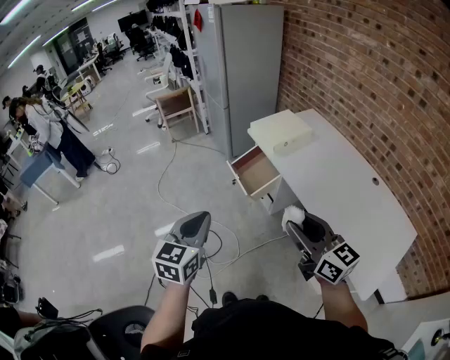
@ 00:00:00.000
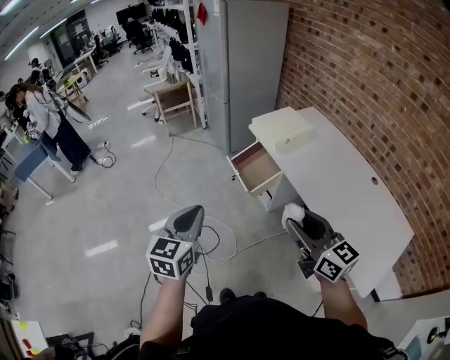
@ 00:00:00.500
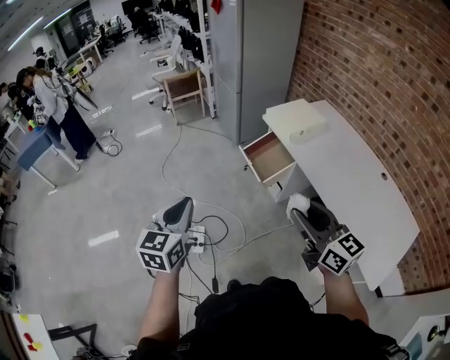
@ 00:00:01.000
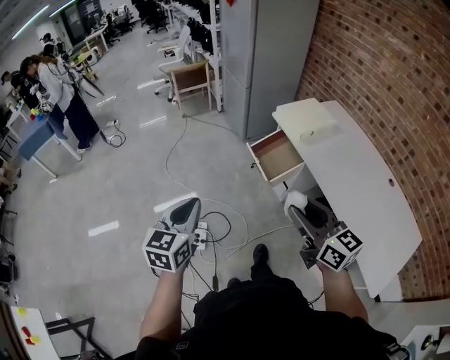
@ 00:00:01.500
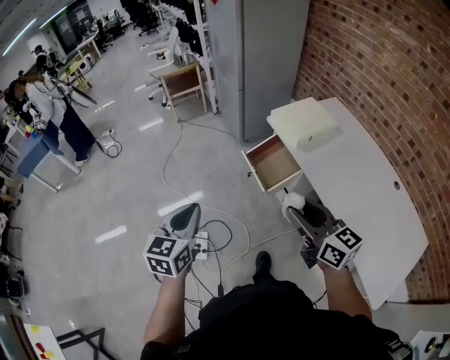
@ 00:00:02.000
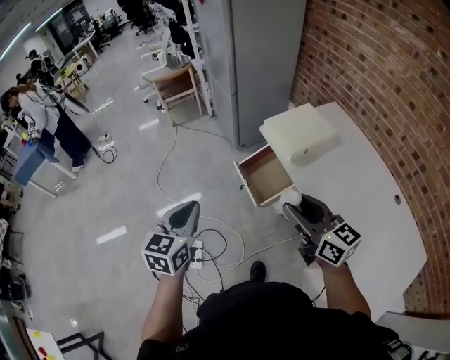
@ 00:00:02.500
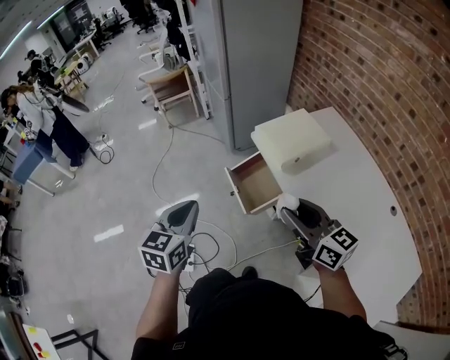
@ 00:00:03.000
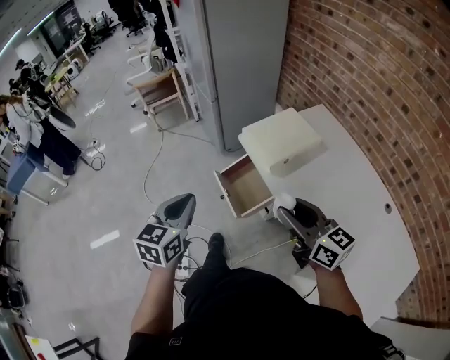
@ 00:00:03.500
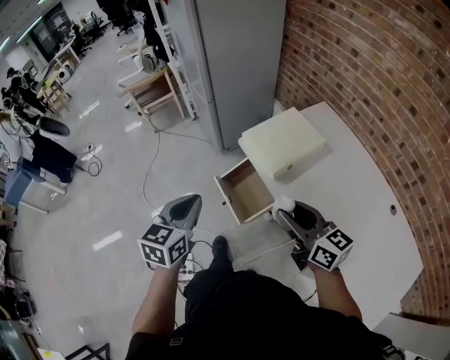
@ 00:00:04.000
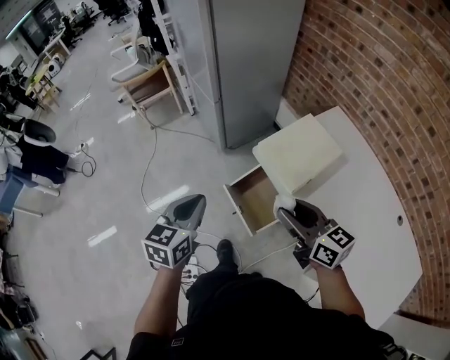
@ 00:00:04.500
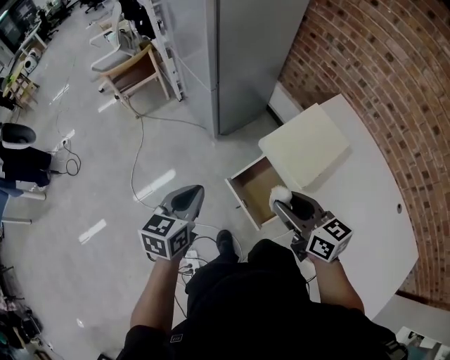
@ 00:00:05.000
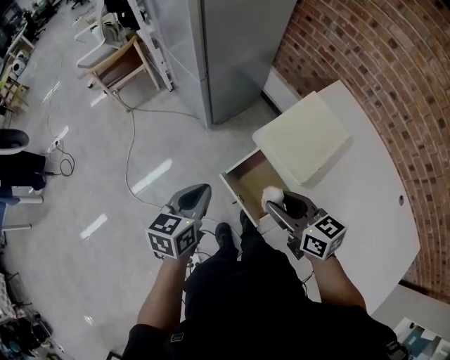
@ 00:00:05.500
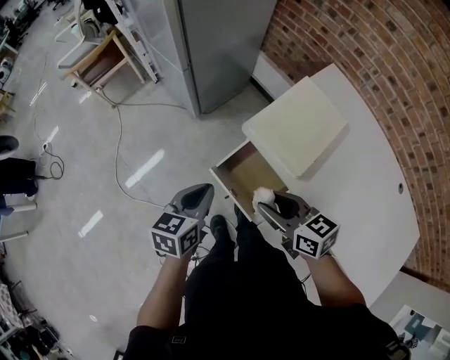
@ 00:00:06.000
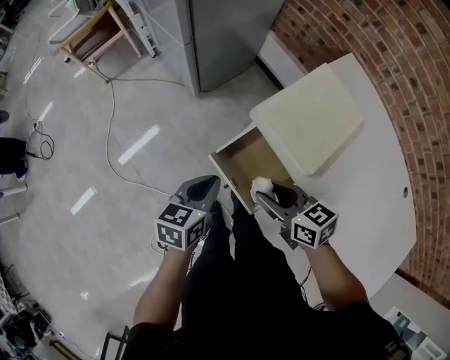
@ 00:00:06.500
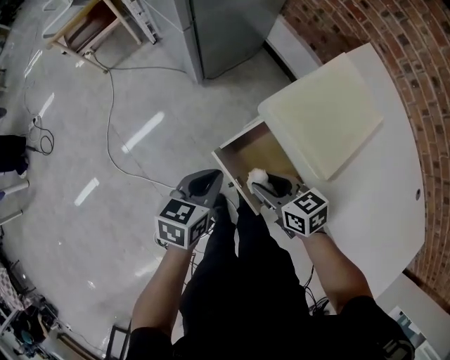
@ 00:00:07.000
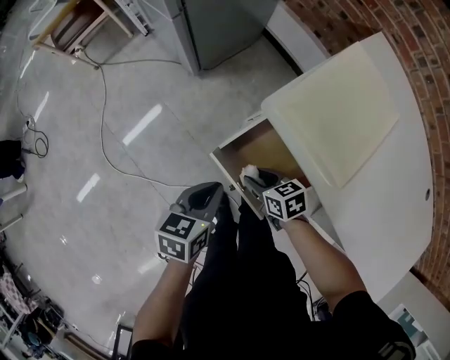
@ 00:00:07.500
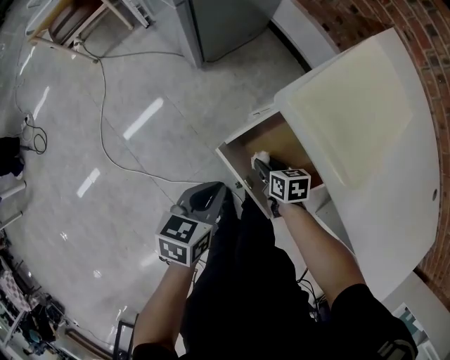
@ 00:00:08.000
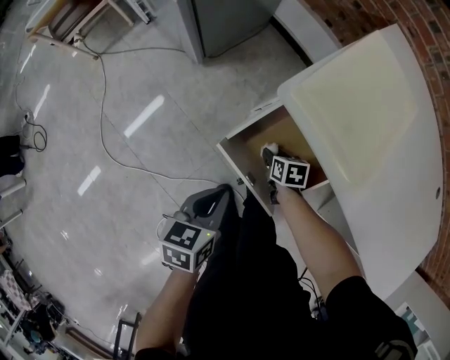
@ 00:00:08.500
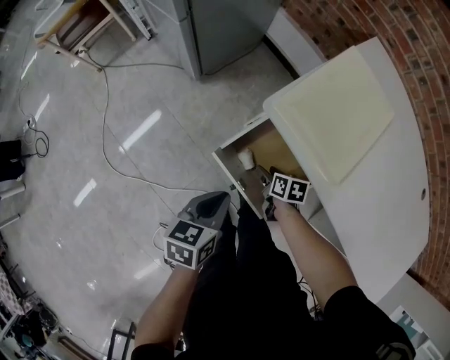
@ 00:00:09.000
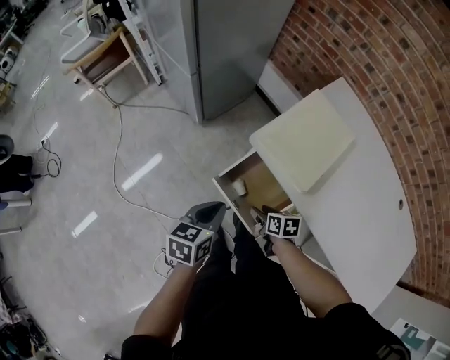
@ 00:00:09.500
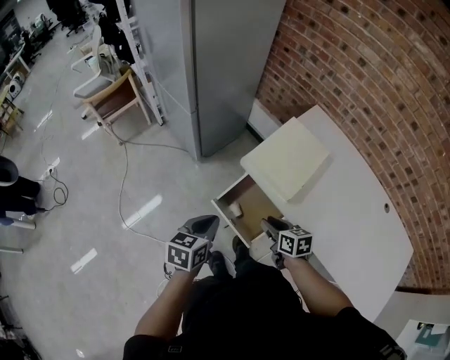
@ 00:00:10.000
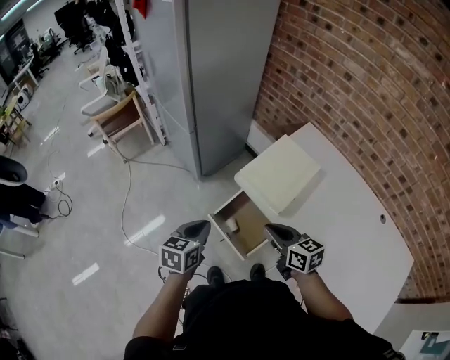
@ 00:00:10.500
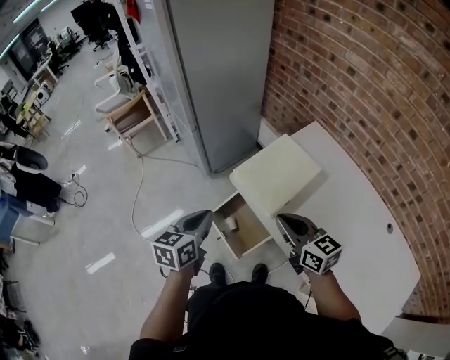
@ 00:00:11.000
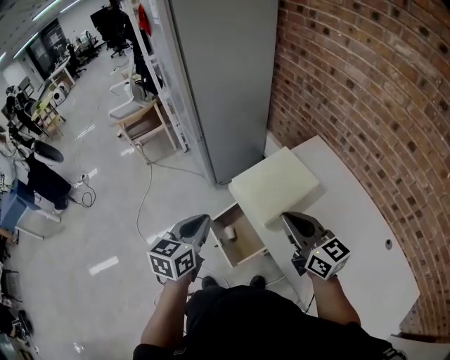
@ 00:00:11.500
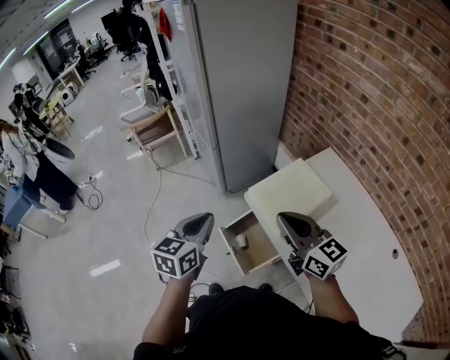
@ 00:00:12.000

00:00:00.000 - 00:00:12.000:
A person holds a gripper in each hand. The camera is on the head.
00:00:00.000 - 00:00:02.000: Both grippers travel together forward and to the left, roughly 15 cm.
00:00:02.000 - 00:00:04.000: Both grippers travel together forward and to the right, some 25 cm.
00:00:04.000 - 00:00:06.000: The left gripper is displaced forward and downward by about 25 cm, and turns by roughly 20 degrees. Meanwhile the right gripper shifts roughly 25 cm forward, downward and to the left, and turns by roughly 20 degrees.
00:00:06.000 - 00:00:08.000: The left gripper travels downward by approximately 20 cm, while the right gripper shifts roughly 35 cm downward, and turns by about 30 degrees.
00:00:08.000 - 00:00:10.000: The two grippers go roughly 25 cm upward.
00:00:10.000 - 00:00:12.000: The right gripper travels upward by about 30 cm, tips its fingers upward by about 40 degrees, and closes its fingers. The left gripper travels upward by some 15 cm, and changes its angle by roughly 20 degrees.

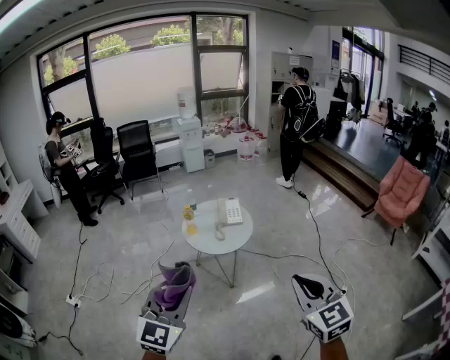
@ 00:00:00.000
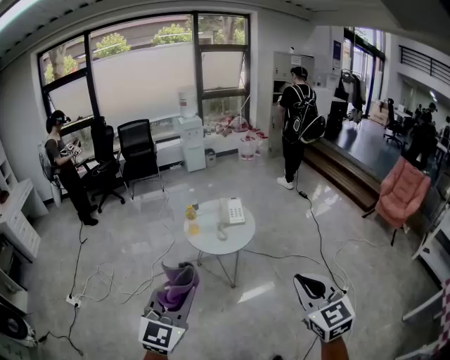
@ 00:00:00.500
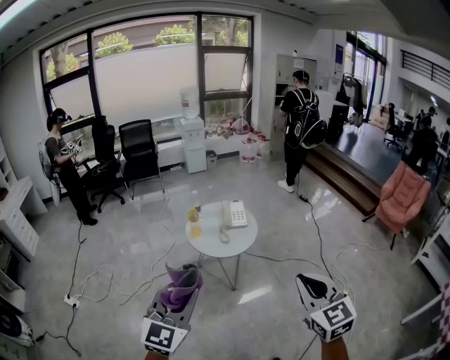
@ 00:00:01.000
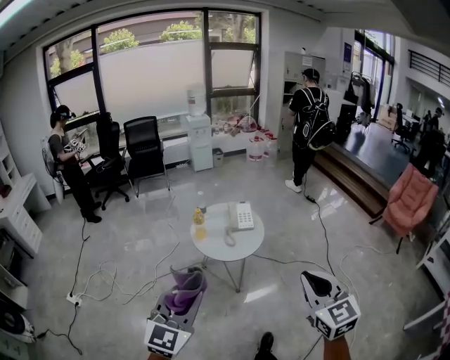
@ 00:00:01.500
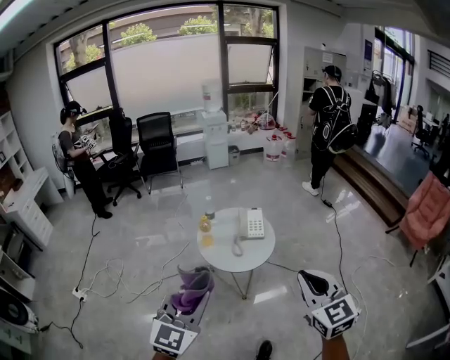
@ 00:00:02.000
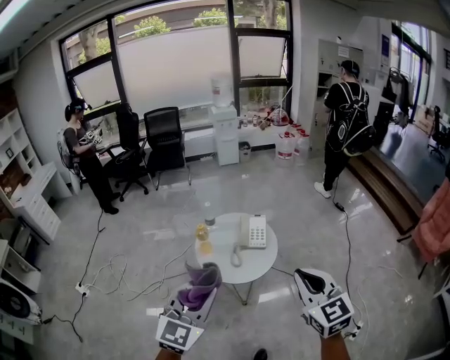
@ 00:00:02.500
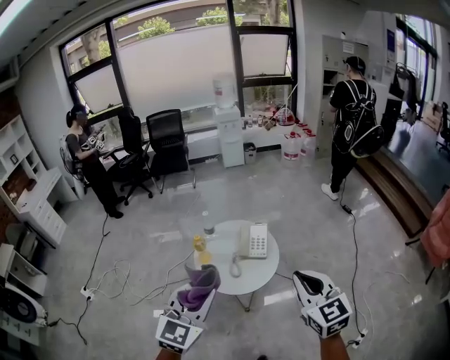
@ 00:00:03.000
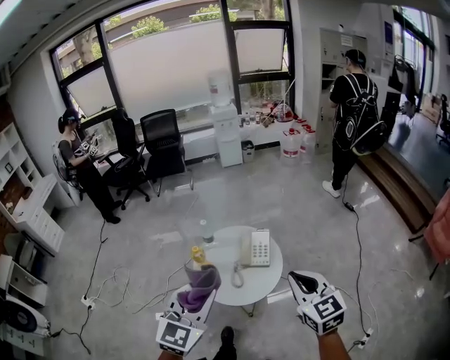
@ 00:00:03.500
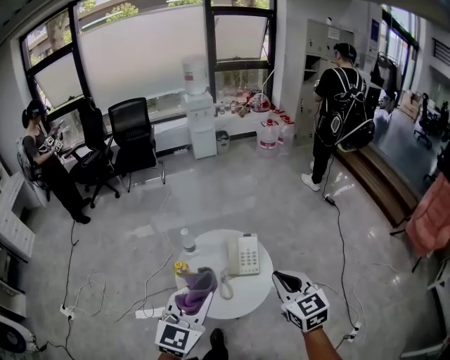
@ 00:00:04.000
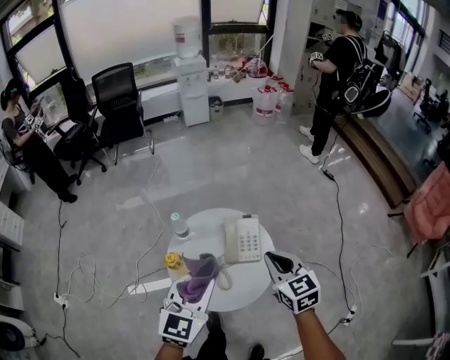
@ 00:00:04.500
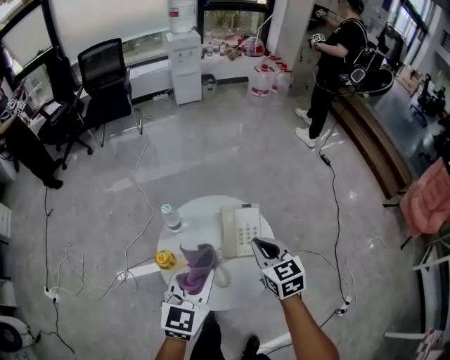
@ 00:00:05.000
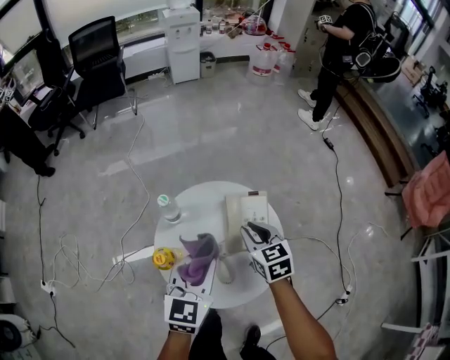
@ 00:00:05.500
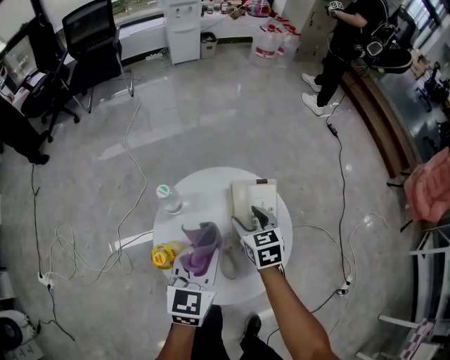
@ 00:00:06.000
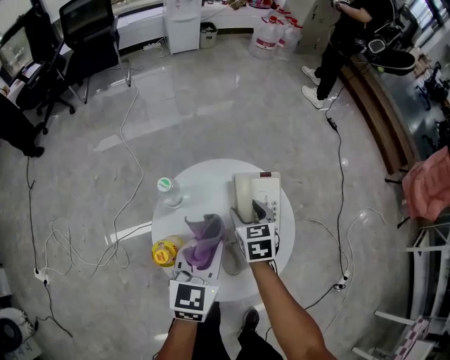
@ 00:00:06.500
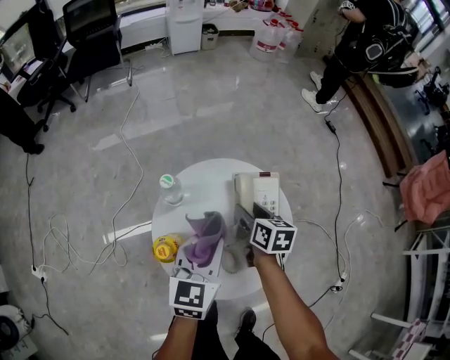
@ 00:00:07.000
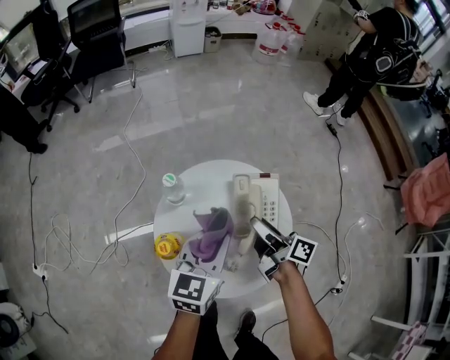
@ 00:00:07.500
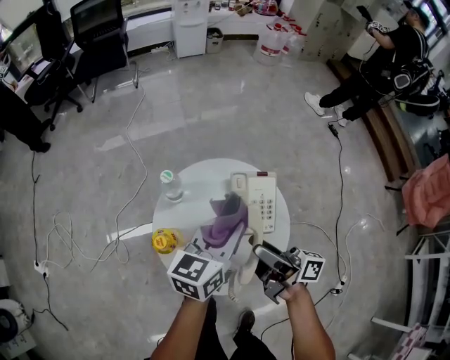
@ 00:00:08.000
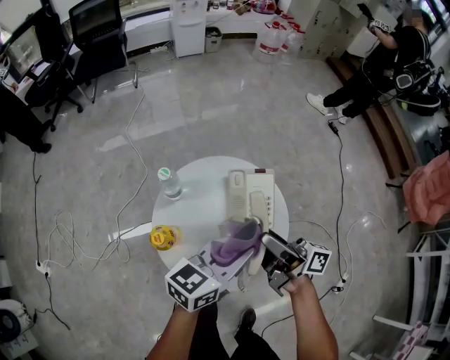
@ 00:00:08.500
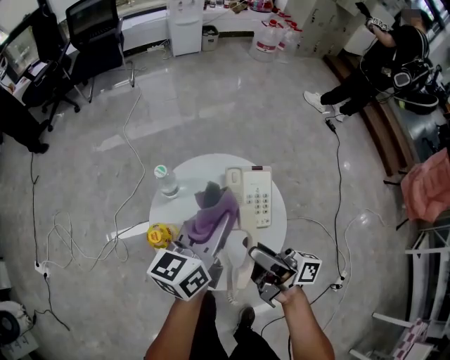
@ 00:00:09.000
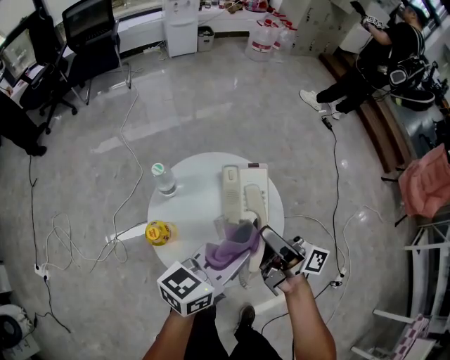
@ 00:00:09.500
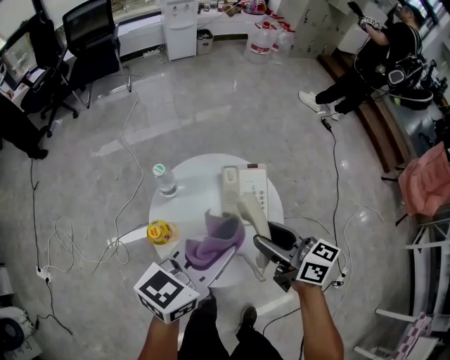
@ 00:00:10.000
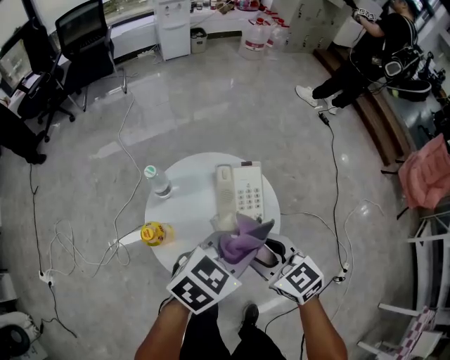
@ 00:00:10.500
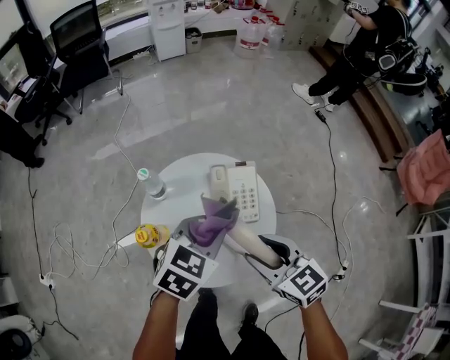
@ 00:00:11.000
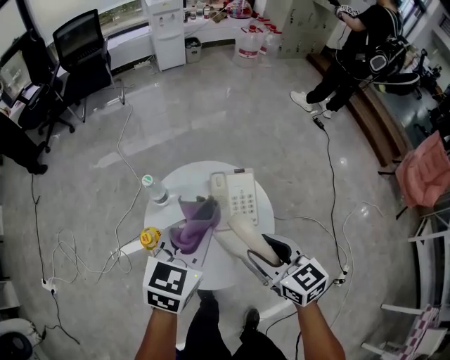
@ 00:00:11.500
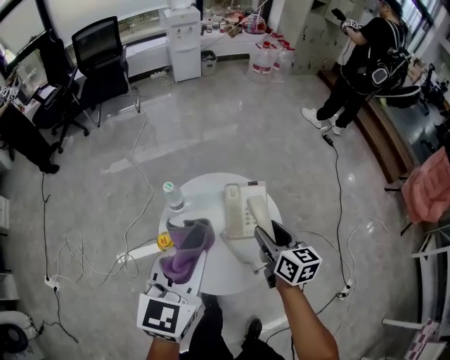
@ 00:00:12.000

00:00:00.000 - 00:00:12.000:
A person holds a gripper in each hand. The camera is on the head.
00:00:00.000 - 00:00:02.000: The two grippers go about 20 cm forward.
00:00:02.000 - 00:00:04.000: The grippers both shift forward by about 40 cm.
00:00:04.000 - 00:00:06.000: The two grippers go some 40 cm downward and forward. The right gripper rotates approximately 20 degrees, and opens up. The left gripper rotates about 20 degrees.
00:00:06.000 - 00:00:08.000: The left gripper travels to the right by roughly 5 cm, and changes its angle by about 20 degrees, while the right gripper goes approximately 15 cm upward and backward, and tilts its fingers approximately 50 degrees upward.
00:00:08.000 - 00:00:10.000: The left gripper swings forward and backward, roughly 10 cm each way, with 2 reversals. Meanwhile the right gripper changes its angle by some 40 degrees.
00:00:10.000 - 00:00:12.000: The right gripper changes place by roughly 5 cm, and rotates about 30 degrees, while the left gripper is displaced to the left and upward by about 10 cm, and changes its angle by about 30 degrees.

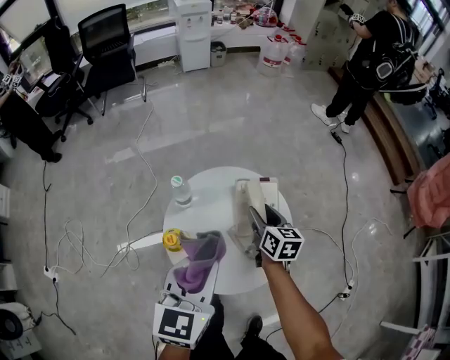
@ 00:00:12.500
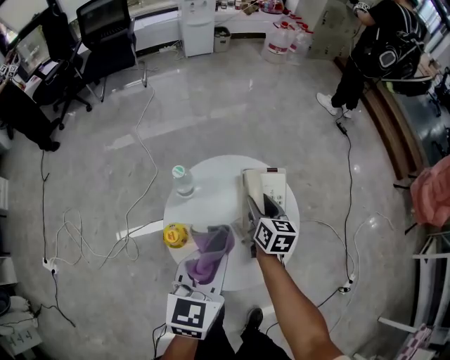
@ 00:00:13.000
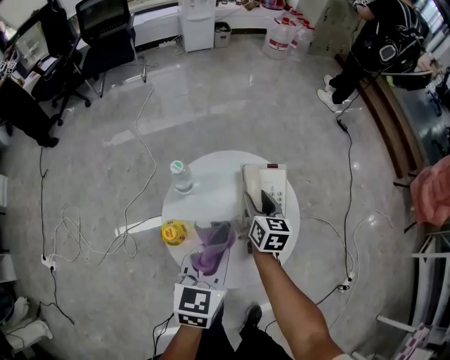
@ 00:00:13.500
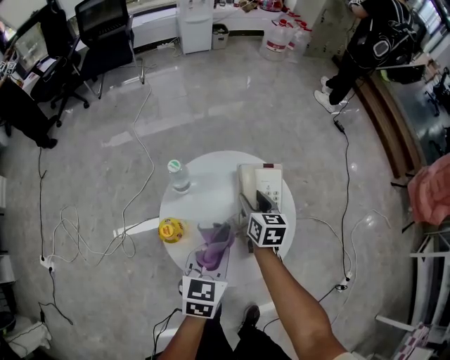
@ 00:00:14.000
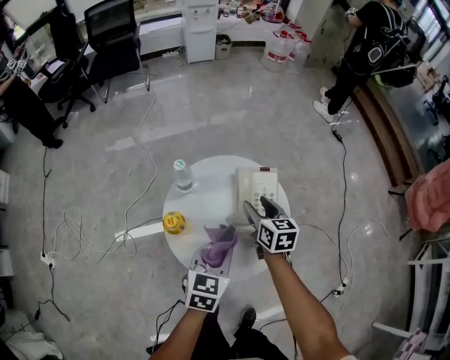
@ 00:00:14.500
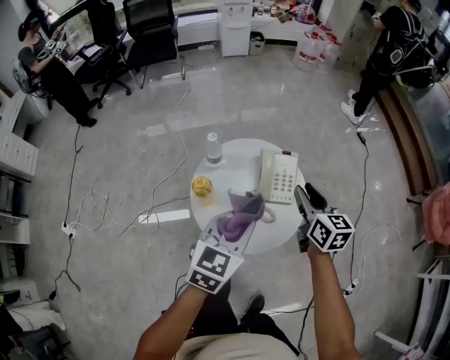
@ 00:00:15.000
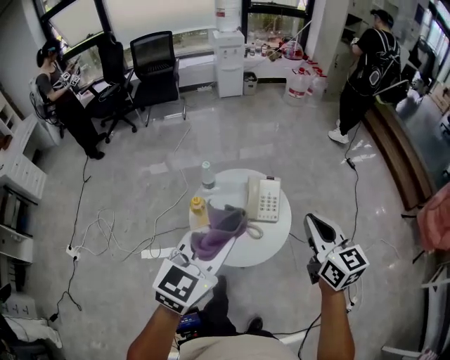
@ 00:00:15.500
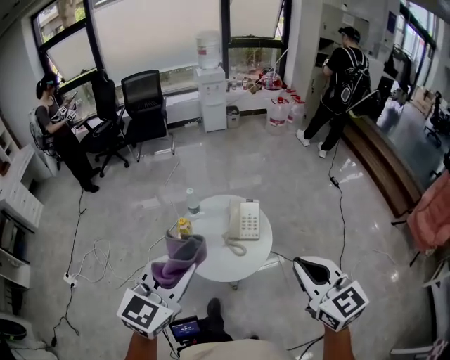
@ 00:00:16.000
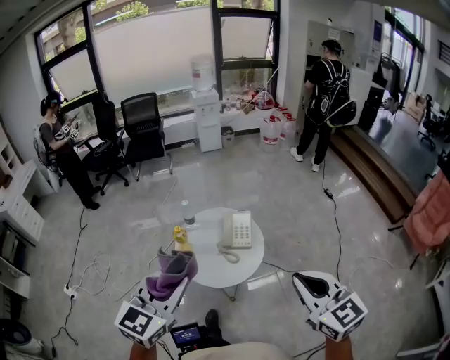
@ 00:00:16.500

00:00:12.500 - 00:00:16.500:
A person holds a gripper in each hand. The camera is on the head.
00:00:12.500 - 00:00:14.500: The left gripper shifts roughly 15 cm downward.
00:00:14.500 - 00:00:16.500: The two grippers go about 50 cm upward and backward. The right gripper turns by roughly 40 degrees, and closes up. Meanwhile the left gripper rotates roughly 30 degrees.
